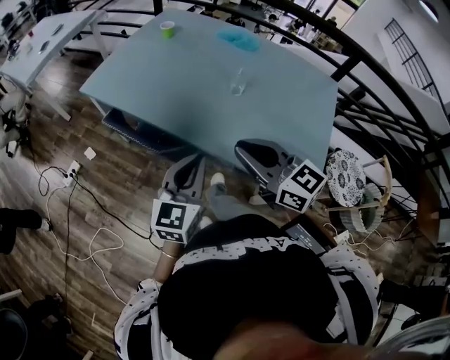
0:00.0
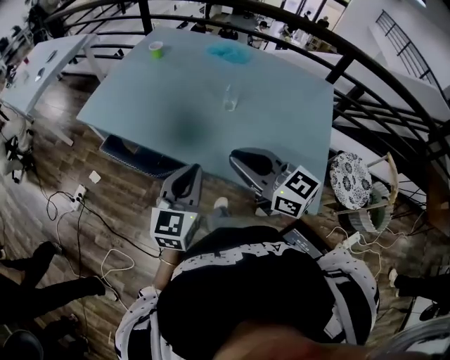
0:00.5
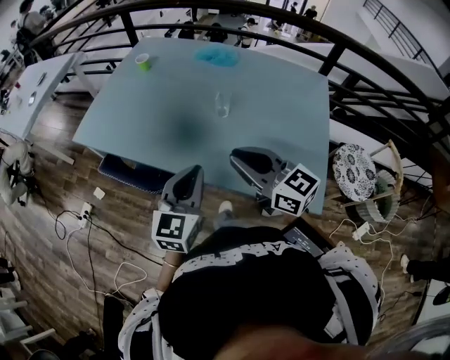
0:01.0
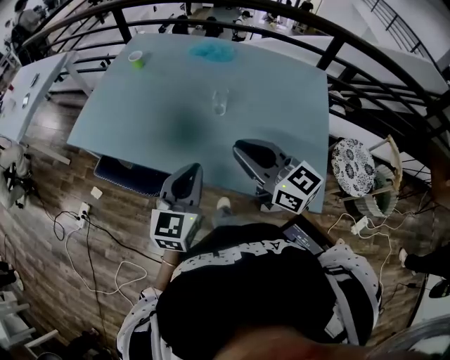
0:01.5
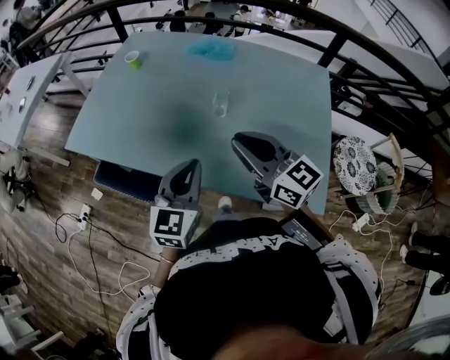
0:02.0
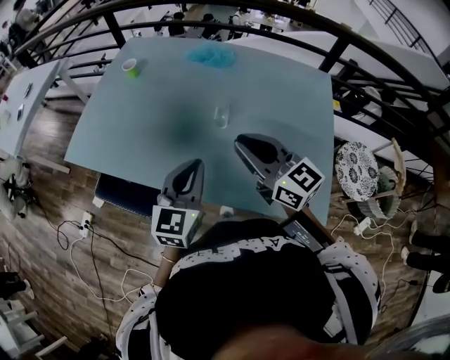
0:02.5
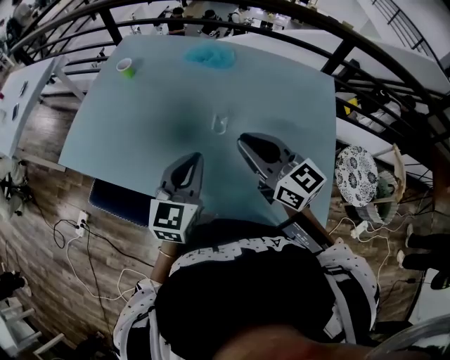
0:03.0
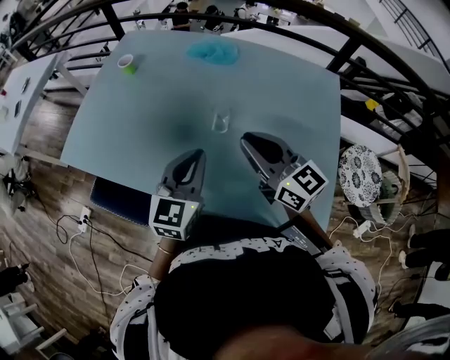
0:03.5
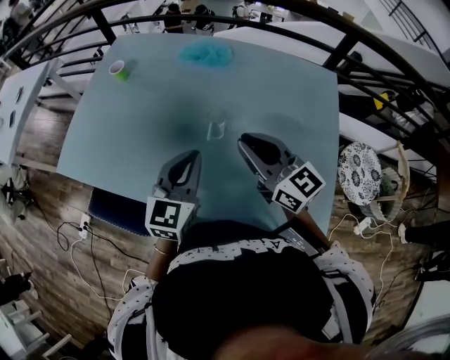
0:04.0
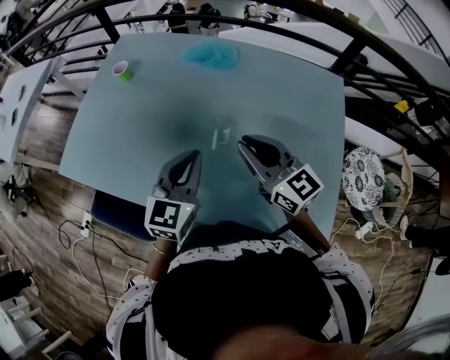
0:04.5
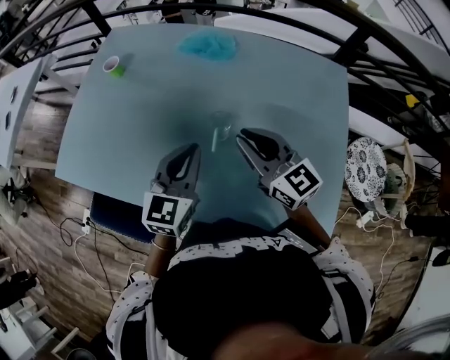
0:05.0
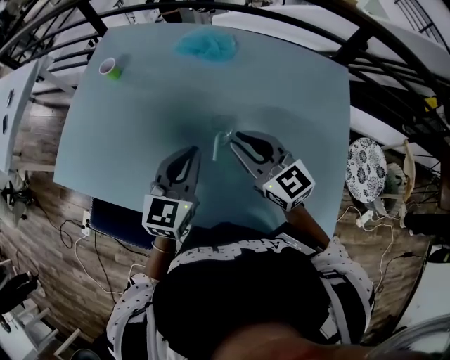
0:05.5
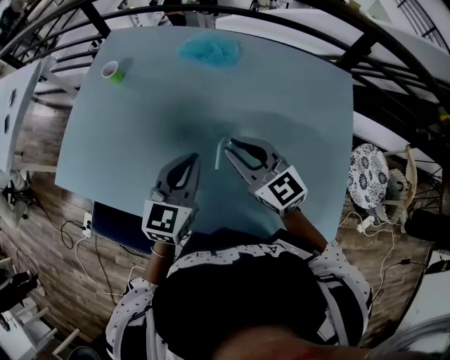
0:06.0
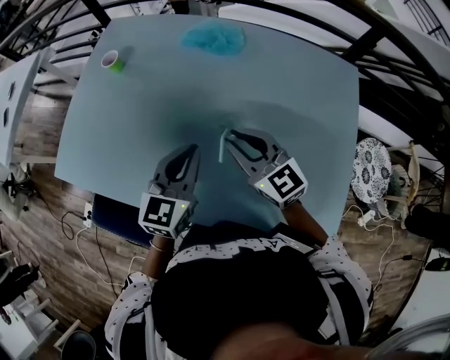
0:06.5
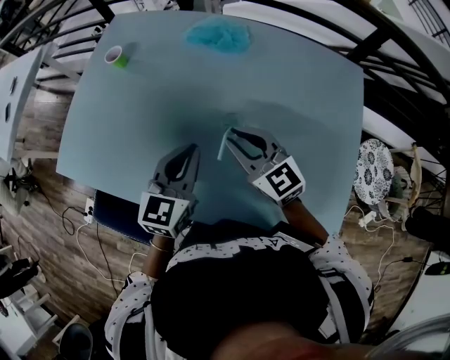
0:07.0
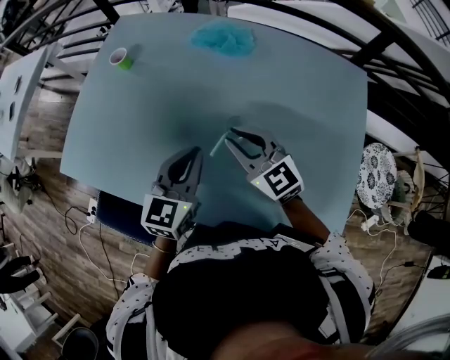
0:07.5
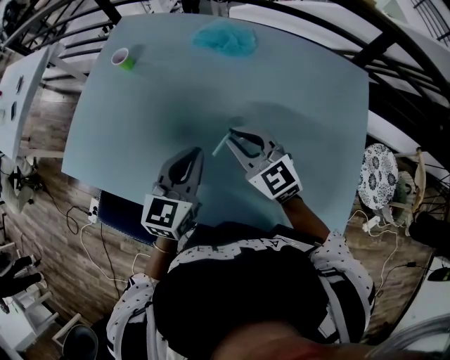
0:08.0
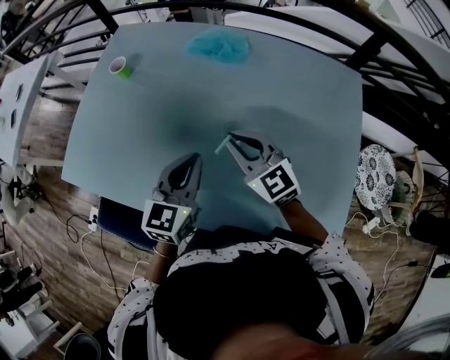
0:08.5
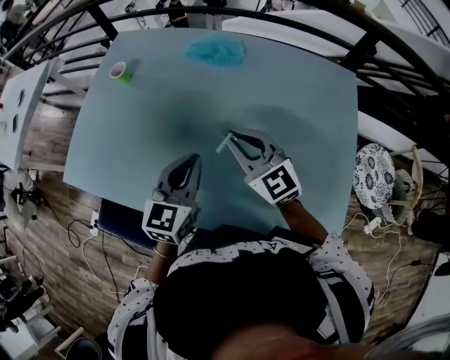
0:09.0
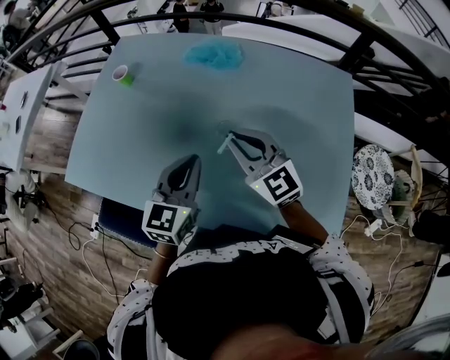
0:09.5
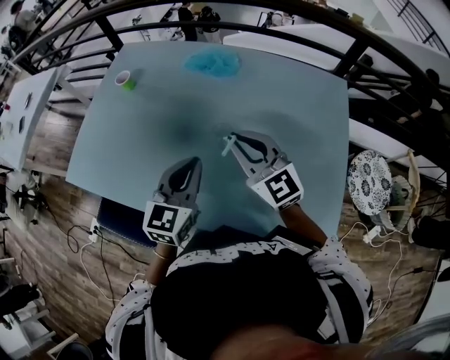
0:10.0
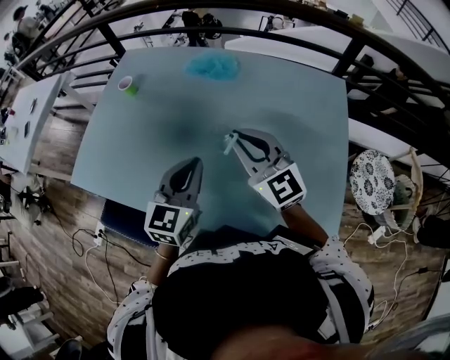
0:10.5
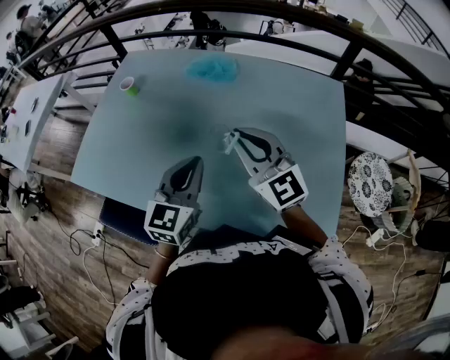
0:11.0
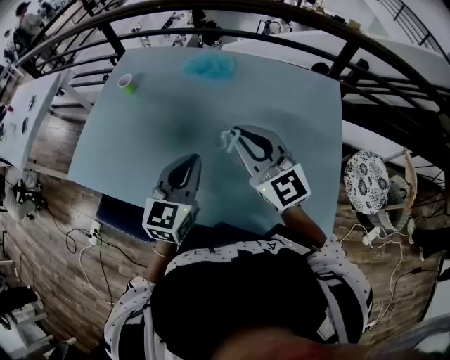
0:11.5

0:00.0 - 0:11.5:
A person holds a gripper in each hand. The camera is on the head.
0:00.0 - 0:02.0: The left gripper moves forward, roughly 10 cm; the right gripper is displaced forward and to the right by approximately 10 cm.
0:02.0 - 0:04.0: The two grippers go some 15 cm forward and to the right.
0:04.0 - 0:06.0: The left gripper moves forward, about 5 cm; the right gripper goes some 10 cm forward and downward.
0:06.0 - 0:07.5: The grippers move only a little.
0:07.5 - 0:09.5: The right gripper travels upward by approximately 5 cm.
0:09.5 - 0:11.5: The left gripper moves roughly 5 cm. The right gripper goes some 10 cm upward.

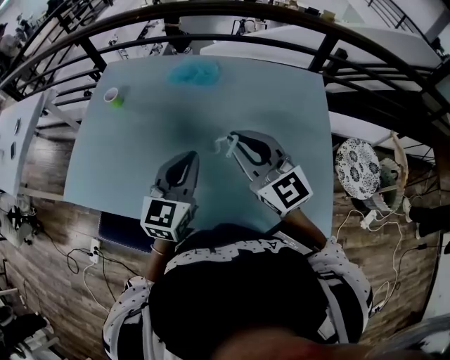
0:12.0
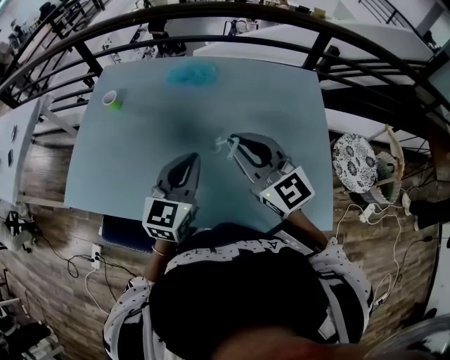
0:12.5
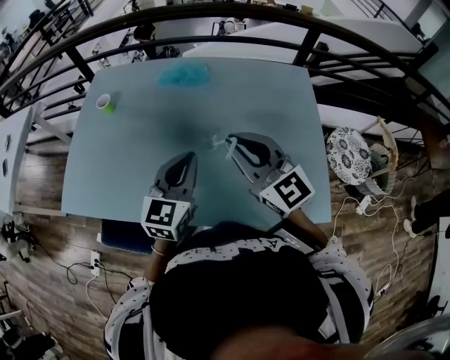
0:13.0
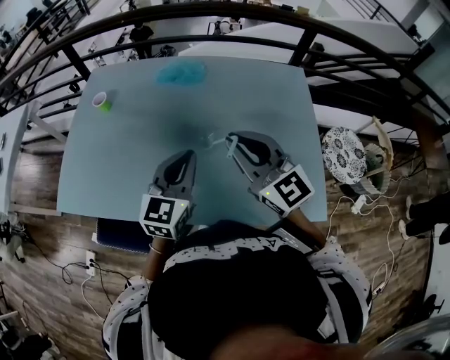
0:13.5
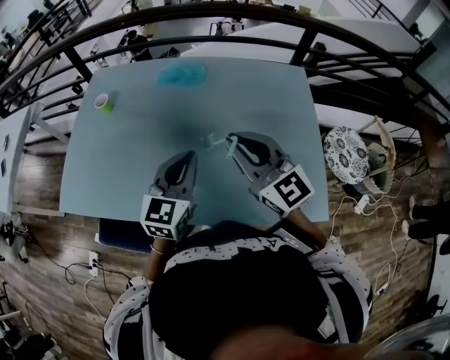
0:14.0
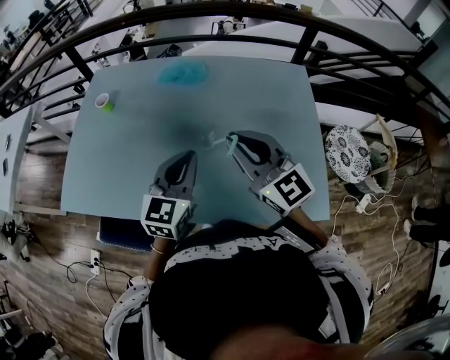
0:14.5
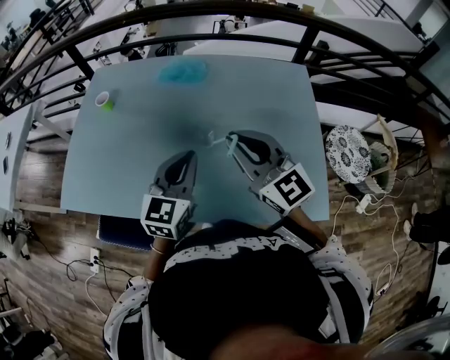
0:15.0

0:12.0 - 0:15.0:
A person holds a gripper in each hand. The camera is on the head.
0:12.0 - 0:13.5: The grippers make only small movements.
0:13.5 - 0:15.0: Neither gripper changes place.

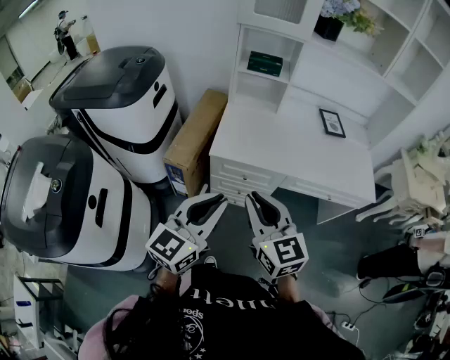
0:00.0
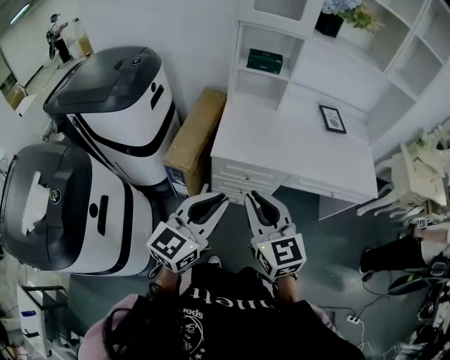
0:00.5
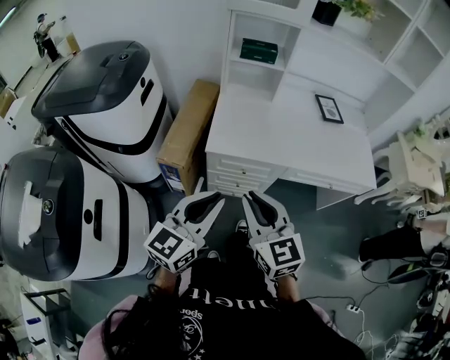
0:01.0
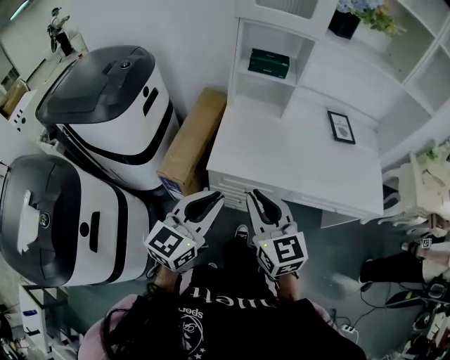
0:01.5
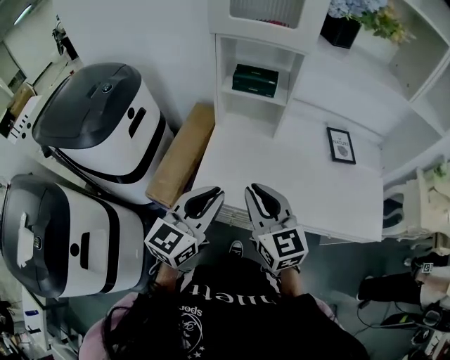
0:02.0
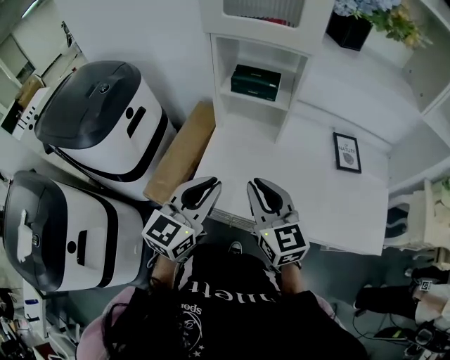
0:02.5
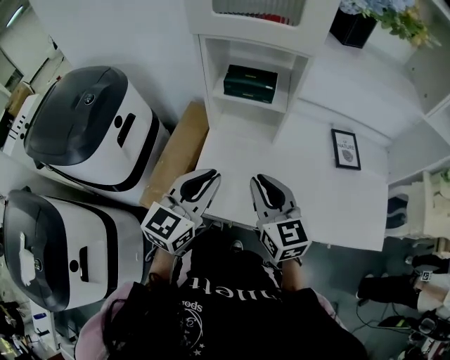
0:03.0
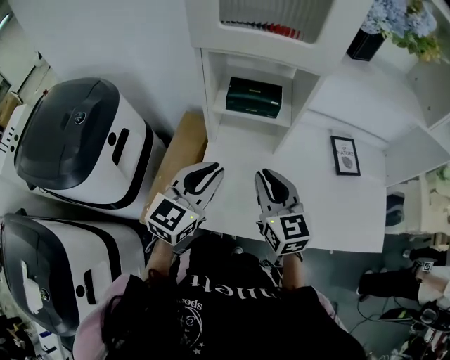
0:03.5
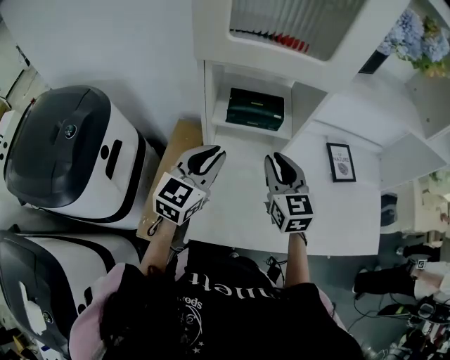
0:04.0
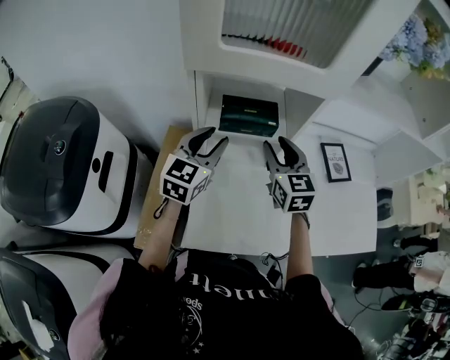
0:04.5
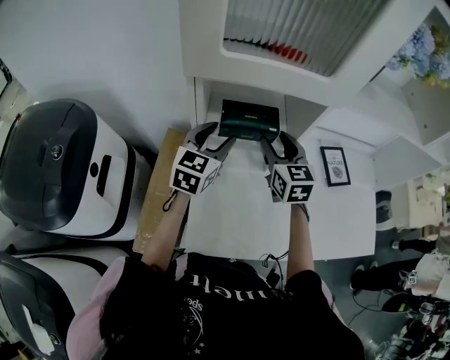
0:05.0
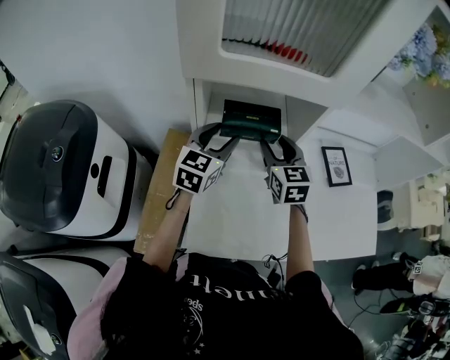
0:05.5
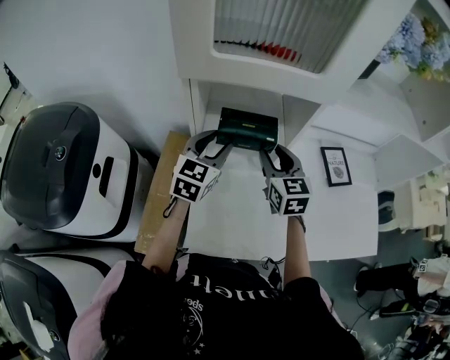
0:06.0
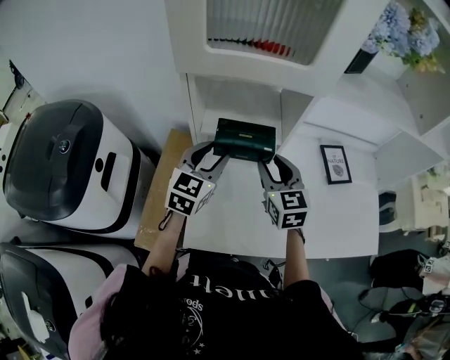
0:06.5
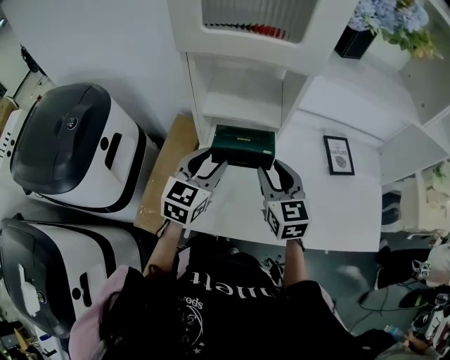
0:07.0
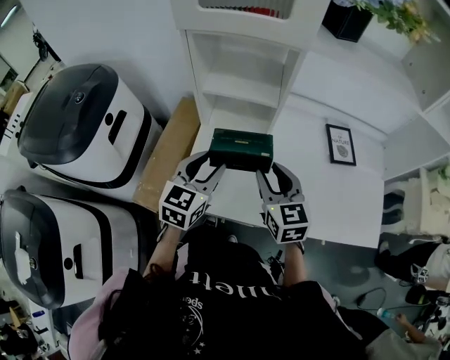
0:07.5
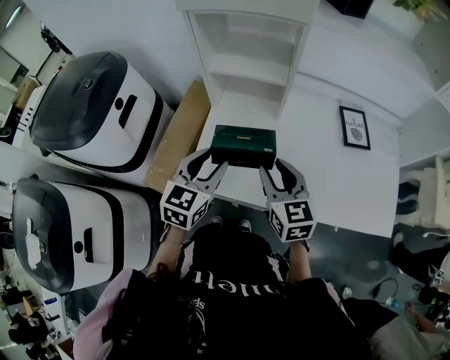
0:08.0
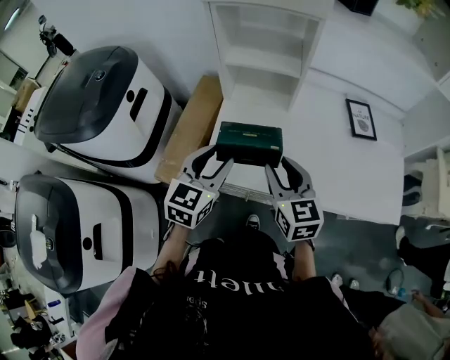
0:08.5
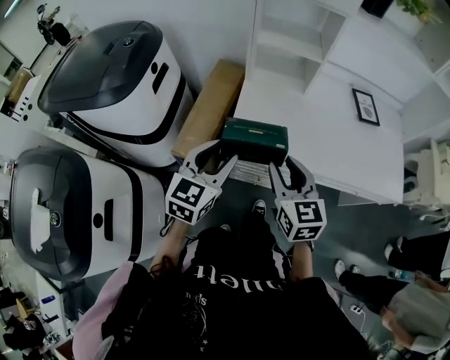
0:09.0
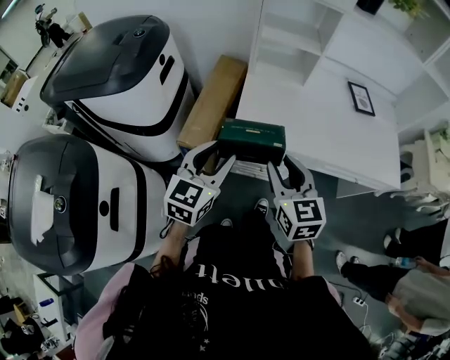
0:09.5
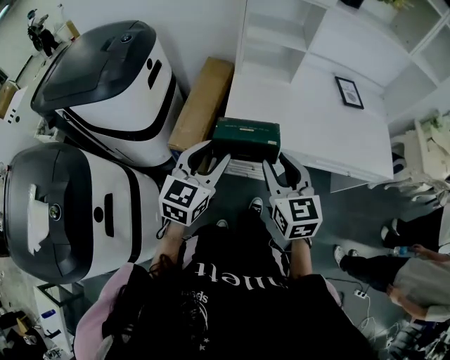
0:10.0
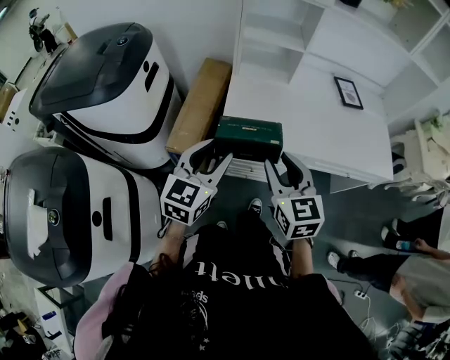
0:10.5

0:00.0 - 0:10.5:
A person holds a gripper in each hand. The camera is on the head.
0:00.0 - 0:02.0: The grippers both shift forward by roughly 25 cm.
0:02.0 - 0:04.0: Both grippers move forward, roughly 30 cm.
0:04.0 - 0:06.5: The left gripper heads forward, covering approximately 5 cm, and opens; the right gripper goes forward and returns, approximately 10 cm each way, and opens up.
0:06.5 - 0:08.5: Both grippers travel together backward, some 25 cm.
0:08.5 - 0:10.5: The grippers both shift backward and to the left by approximately 20 cm.

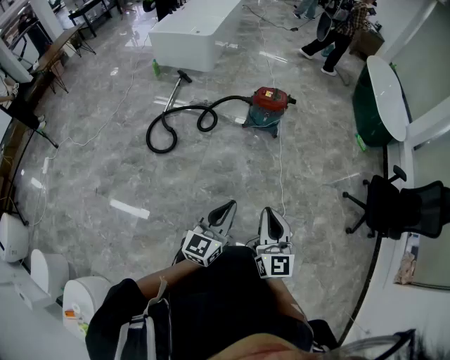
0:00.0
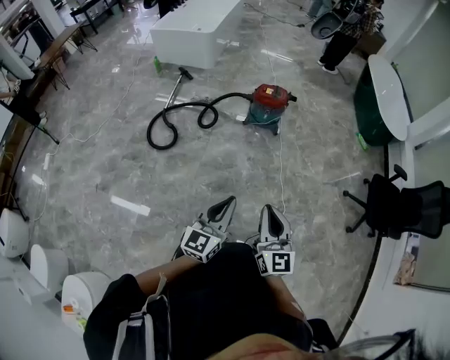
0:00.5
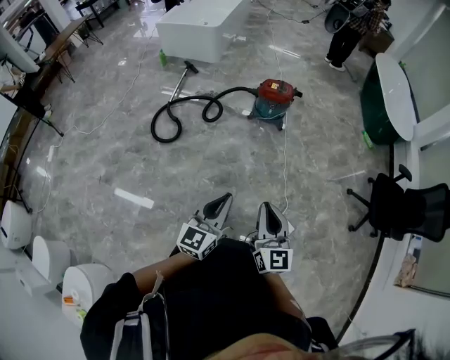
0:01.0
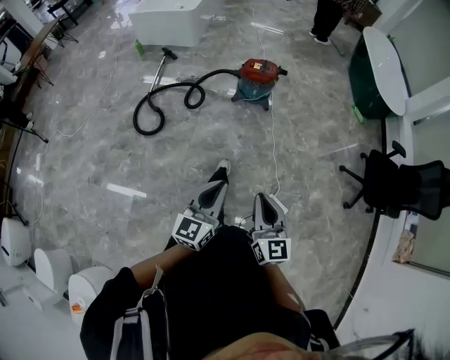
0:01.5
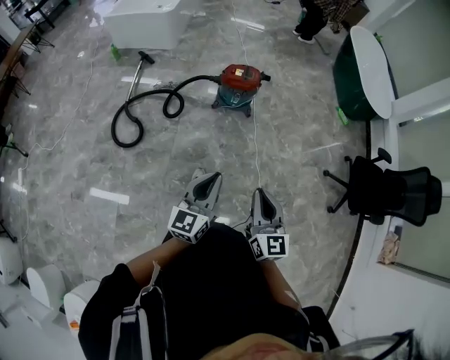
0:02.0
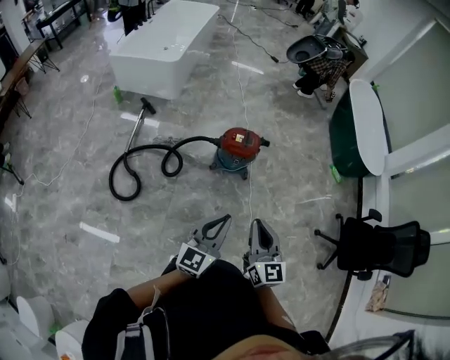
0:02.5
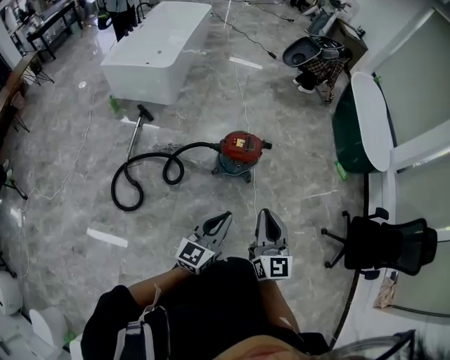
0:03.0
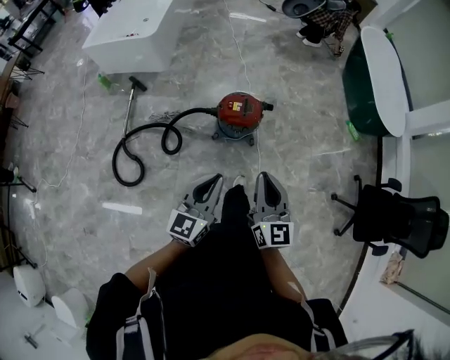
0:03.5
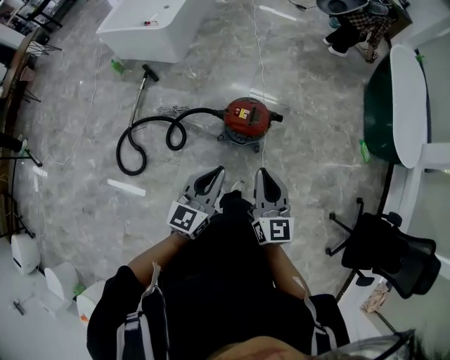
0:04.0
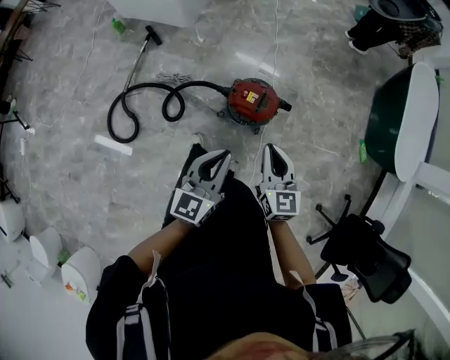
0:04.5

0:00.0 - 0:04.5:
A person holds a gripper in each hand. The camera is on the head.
0:00.0 - 0:02.0: Both grippers travel together forward, roughly 15 cm.
0:02.0 - 0:04.5: Both grippers are carried forward, approximately 60 cm.
